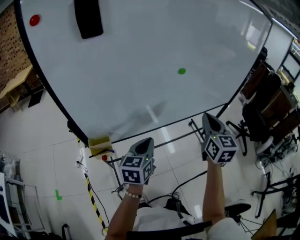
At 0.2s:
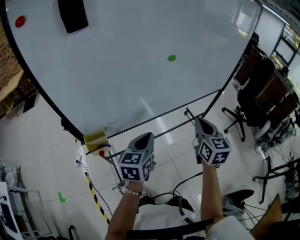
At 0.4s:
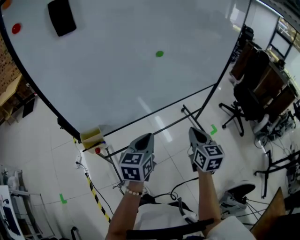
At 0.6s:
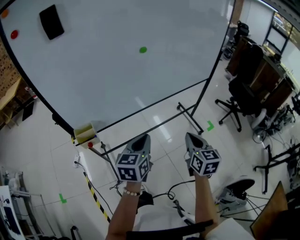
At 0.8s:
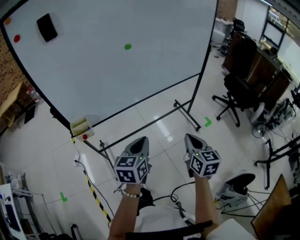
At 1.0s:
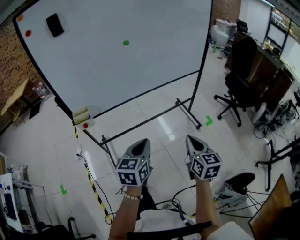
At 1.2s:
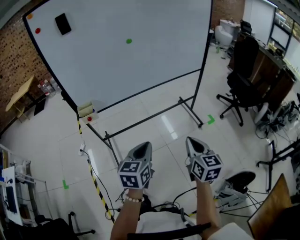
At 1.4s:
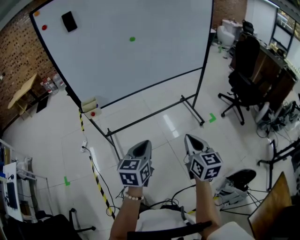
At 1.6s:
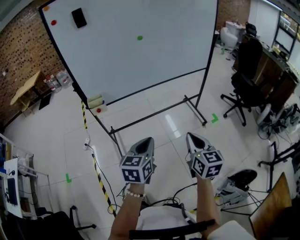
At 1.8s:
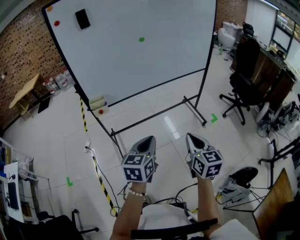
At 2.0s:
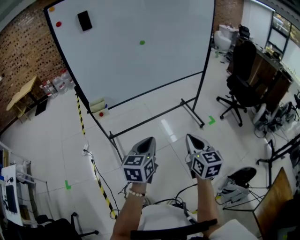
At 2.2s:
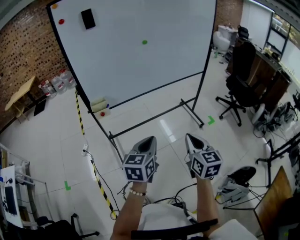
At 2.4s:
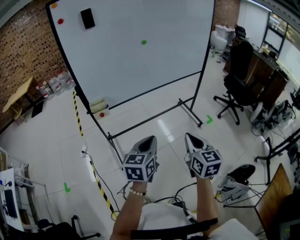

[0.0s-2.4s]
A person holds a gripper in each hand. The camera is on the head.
0.0s to 1.2s: The pair of grippers is taken backward and to the right, approximately 40 cm.
1.2s to 2.4s: The left gripper is displaced to the left by approximately 10 cm; the right gripper travels to the left and backward by some 15 cm.

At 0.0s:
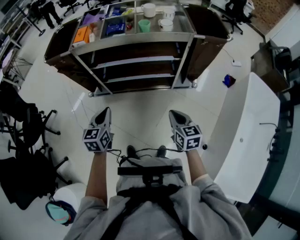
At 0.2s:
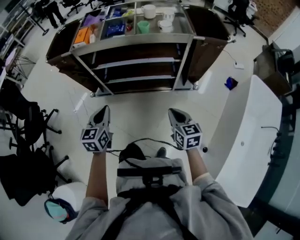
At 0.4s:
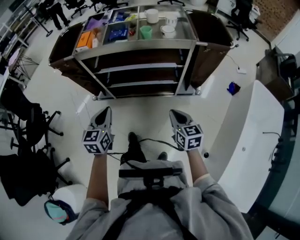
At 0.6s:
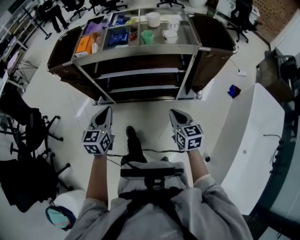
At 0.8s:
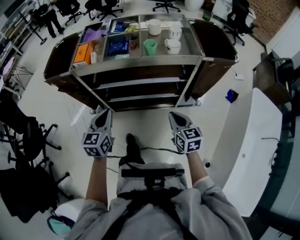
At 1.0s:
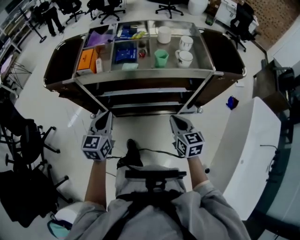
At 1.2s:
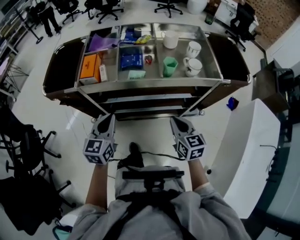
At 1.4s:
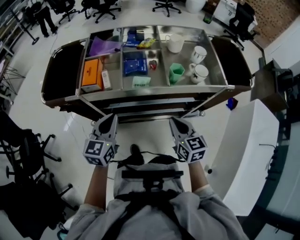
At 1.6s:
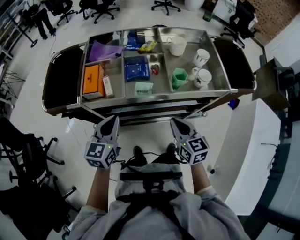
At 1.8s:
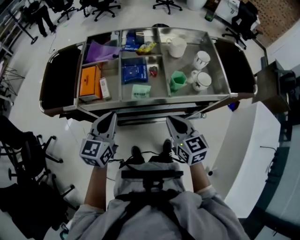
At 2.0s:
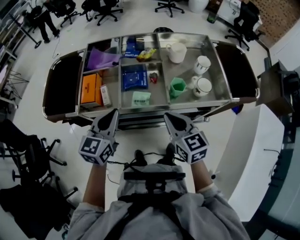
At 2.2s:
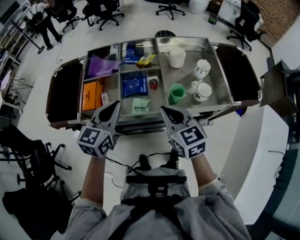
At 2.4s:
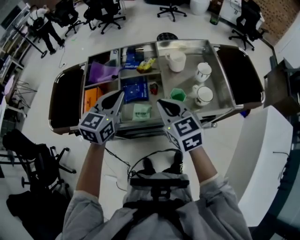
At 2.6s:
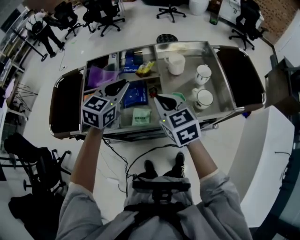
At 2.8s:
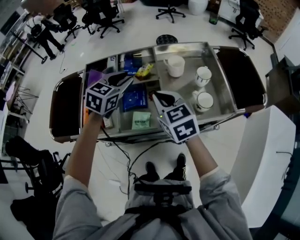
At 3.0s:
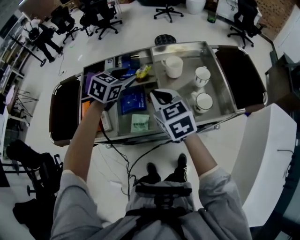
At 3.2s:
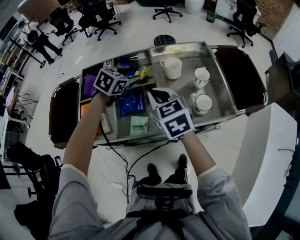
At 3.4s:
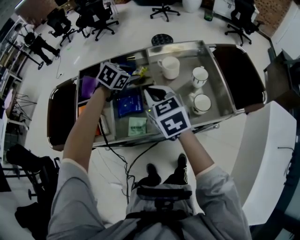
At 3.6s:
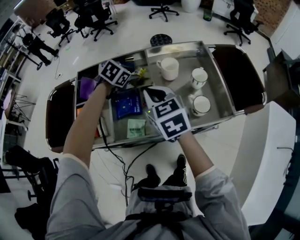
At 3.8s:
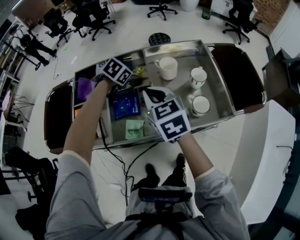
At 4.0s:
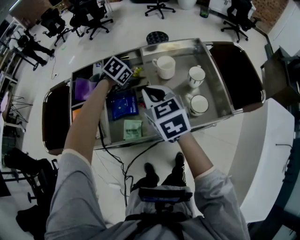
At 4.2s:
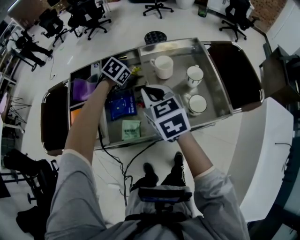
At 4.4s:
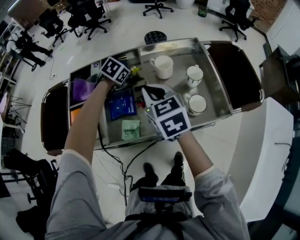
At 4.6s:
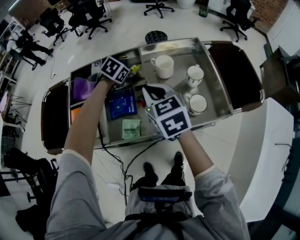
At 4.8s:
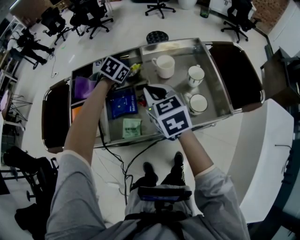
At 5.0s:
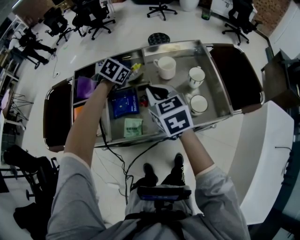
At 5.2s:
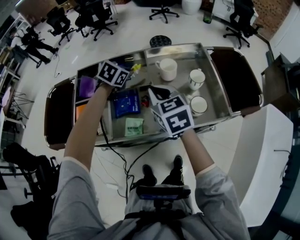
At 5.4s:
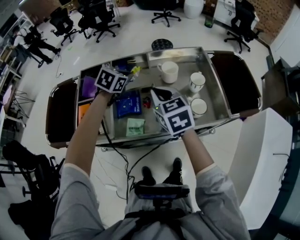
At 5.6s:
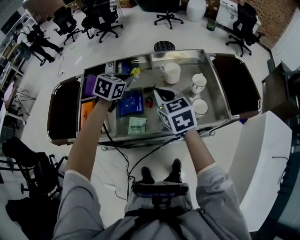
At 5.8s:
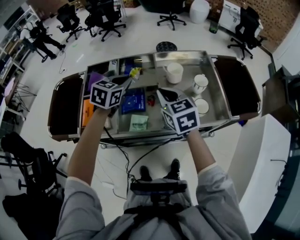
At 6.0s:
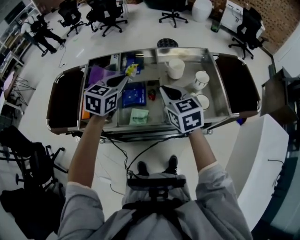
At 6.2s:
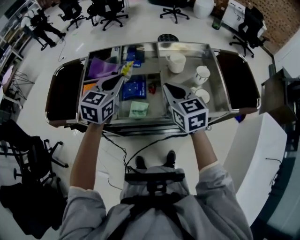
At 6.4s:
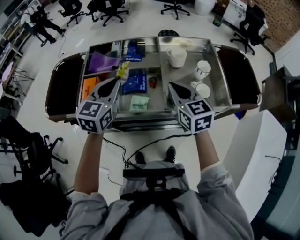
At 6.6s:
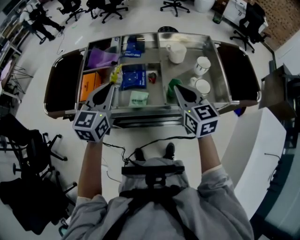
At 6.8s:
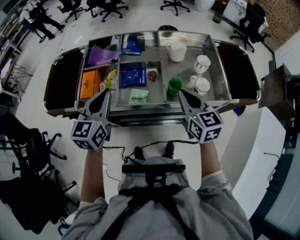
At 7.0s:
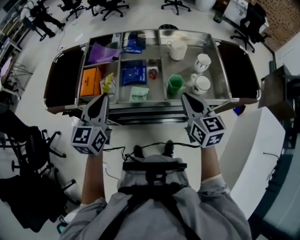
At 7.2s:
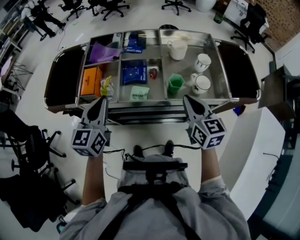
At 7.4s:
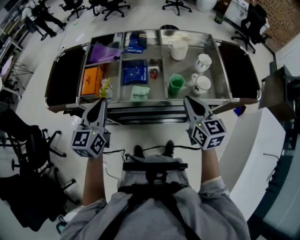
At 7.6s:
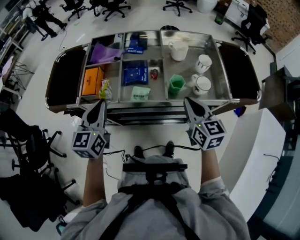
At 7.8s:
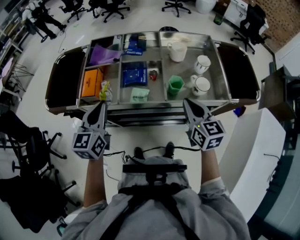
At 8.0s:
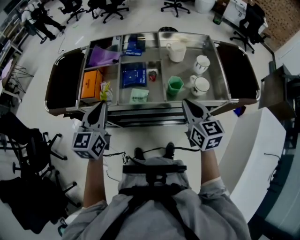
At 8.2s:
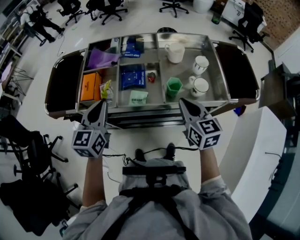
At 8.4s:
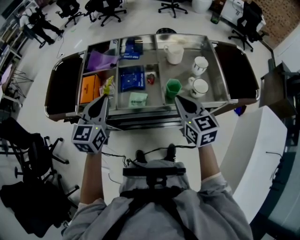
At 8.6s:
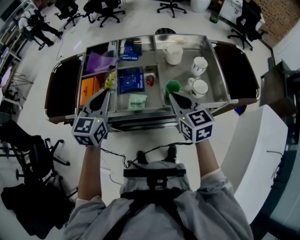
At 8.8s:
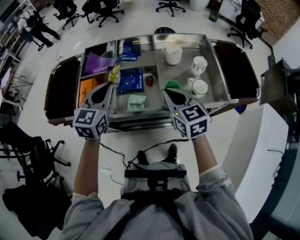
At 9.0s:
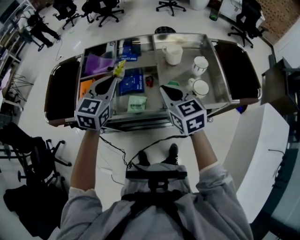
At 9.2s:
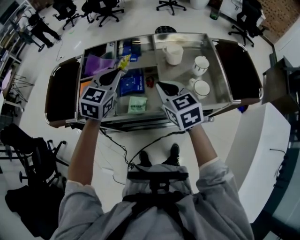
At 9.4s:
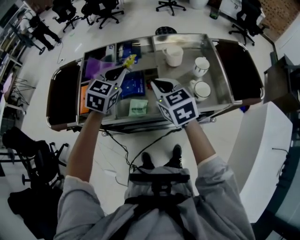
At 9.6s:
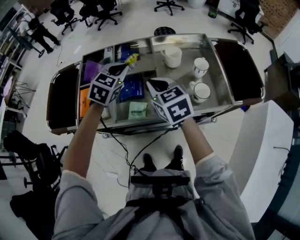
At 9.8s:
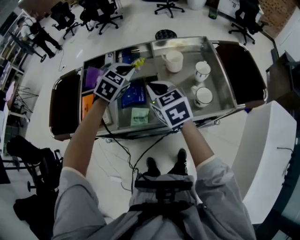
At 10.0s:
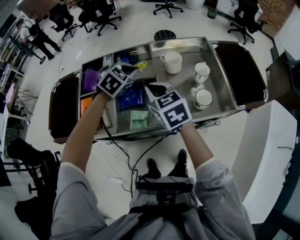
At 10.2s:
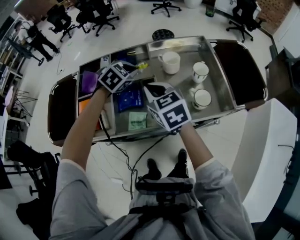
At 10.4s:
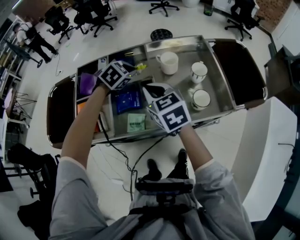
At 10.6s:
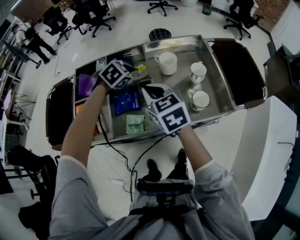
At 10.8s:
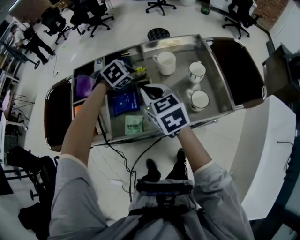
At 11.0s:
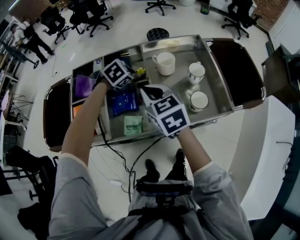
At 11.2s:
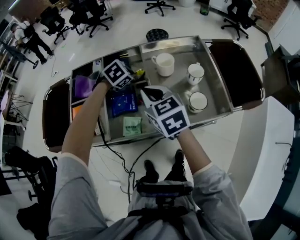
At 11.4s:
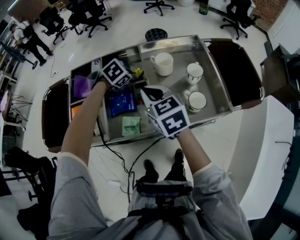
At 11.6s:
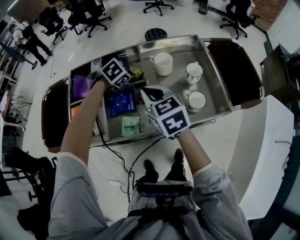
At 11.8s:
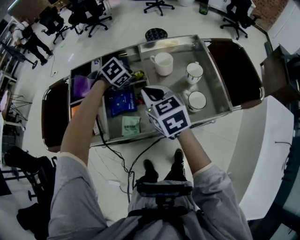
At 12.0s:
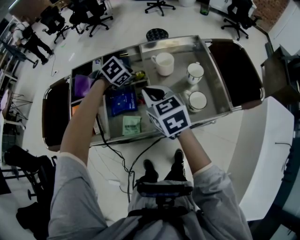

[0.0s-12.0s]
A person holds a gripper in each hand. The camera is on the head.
0.0s to 1.6s: The left gripper moves forward, approximately 30 cm. Meanwhile the right gripper travels forward and to the left by about 35 cm.
1.6s to 3.0s: The right gripper goes about 25 cm forward and upward; the left gripper heads forward, covering roughly 30 cm, swivels some 30 degrees, and opens up.
3.0s to 4.4s: The left gripper is displaced downward and forward by about 15 cm, turns by roughly 20 degrees, and closes its fingers.
4.4s to 6.0s: The left gripper is displaced backward and upward by some 20 cm, and points its fingers about 40 degrees further upward.
6.0s to 7.6s: The left gripper is displaced backward and to the left by roughly 20 cm, and swivels some 30 degrees. The right gripper is displaced backward and to the right by about 15 cm.
7.6s to 9.0s: The right gripper shifts about 10 cm forward and to the left. Meanwhile the left gripper moves forward and to the right, about 15 cm, and swivels some 20 degrees.
9.0s to 10.4s: The right gripper heads forward, covering approximately 10 cm; the left gripper goes some 20 cm forward, downward and to the right, and points its fingers roughly 30 degrees further downward.
10.4s to 12.0s: The left gripper opens its fingers.

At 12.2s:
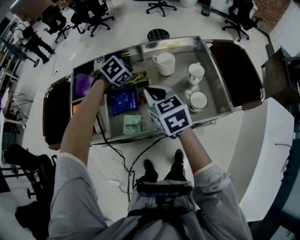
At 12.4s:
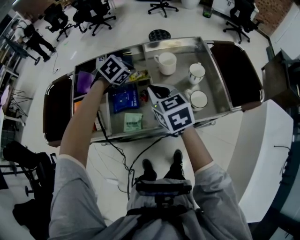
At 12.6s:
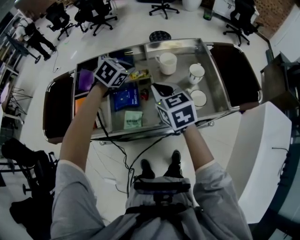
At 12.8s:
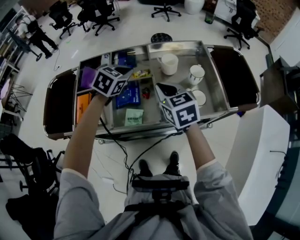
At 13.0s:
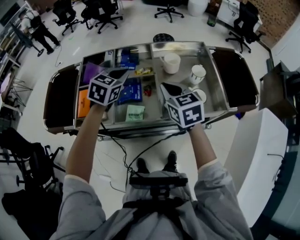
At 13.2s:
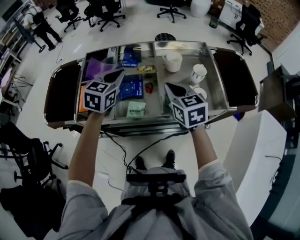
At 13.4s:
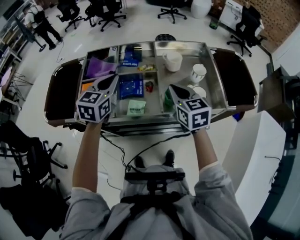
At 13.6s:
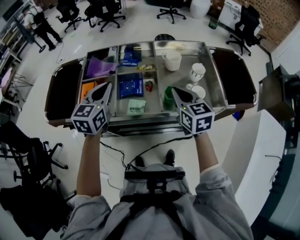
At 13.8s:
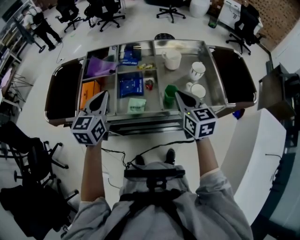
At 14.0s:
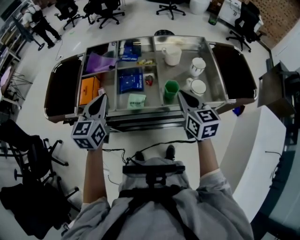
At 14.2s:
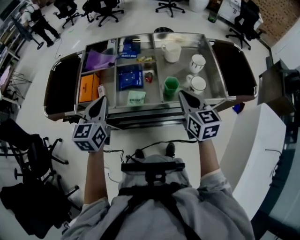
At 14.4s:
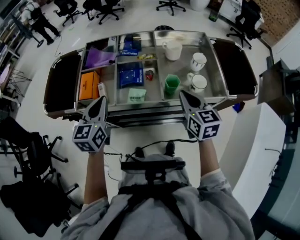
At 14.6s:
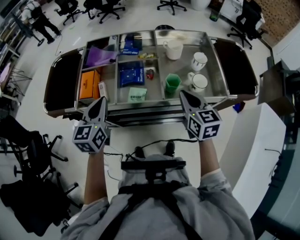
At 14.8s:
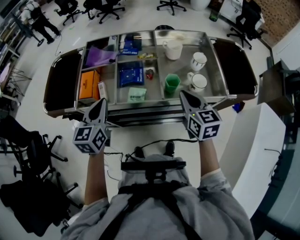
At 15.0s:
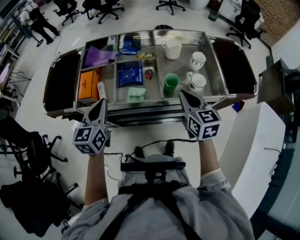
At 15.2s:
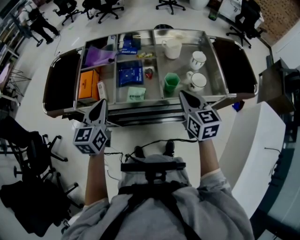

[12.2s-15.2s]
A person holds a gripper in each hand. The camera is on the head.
12.2s to 13.8s: The left gripper shifts roughly 30 cm backward, to the left and upward, angles its fingers upward, by approximately 50 degrees, and closes. Meanwhile the right gripper heads backward and to the right, covering some 10 cm.
13.8s to 15.2s: The left gripper shifts about 5 cm backward.

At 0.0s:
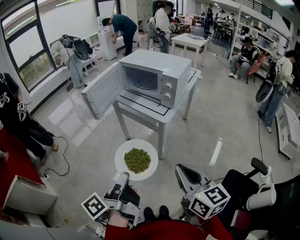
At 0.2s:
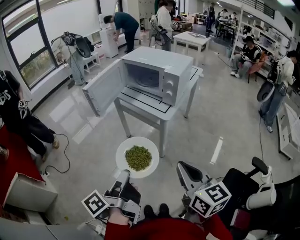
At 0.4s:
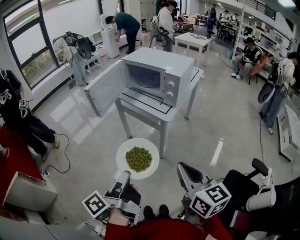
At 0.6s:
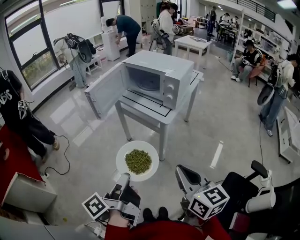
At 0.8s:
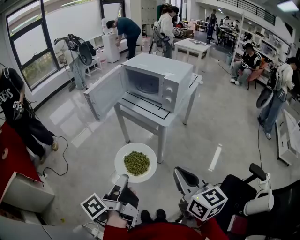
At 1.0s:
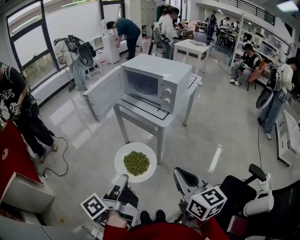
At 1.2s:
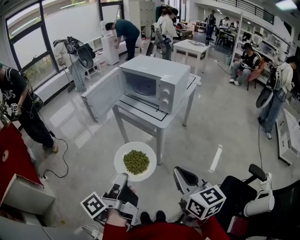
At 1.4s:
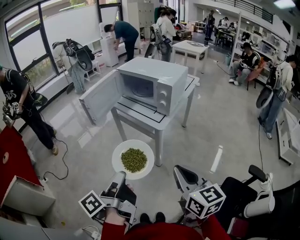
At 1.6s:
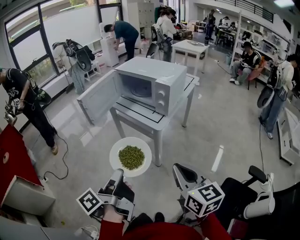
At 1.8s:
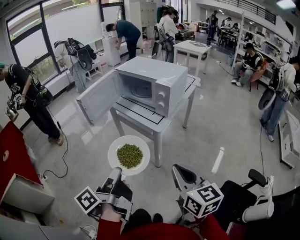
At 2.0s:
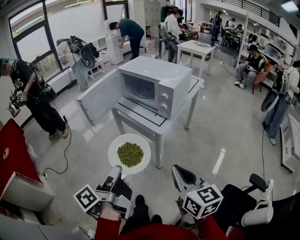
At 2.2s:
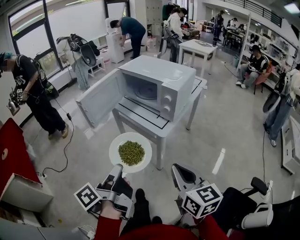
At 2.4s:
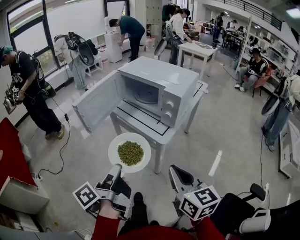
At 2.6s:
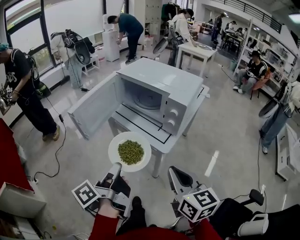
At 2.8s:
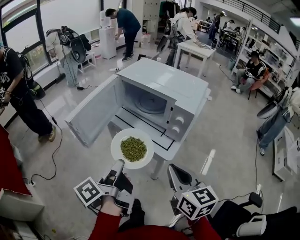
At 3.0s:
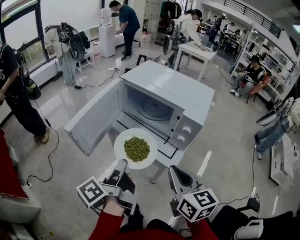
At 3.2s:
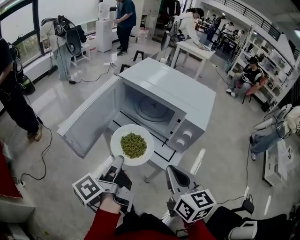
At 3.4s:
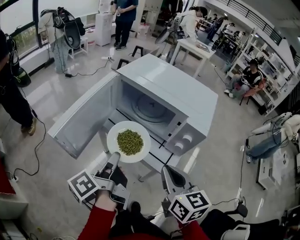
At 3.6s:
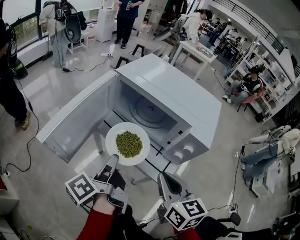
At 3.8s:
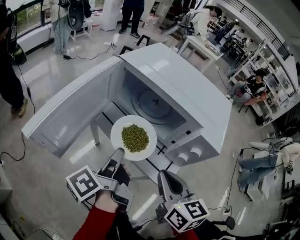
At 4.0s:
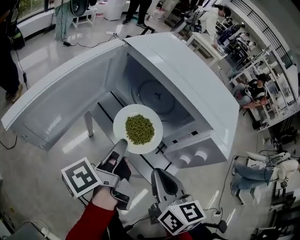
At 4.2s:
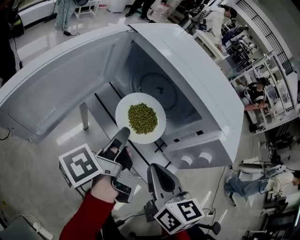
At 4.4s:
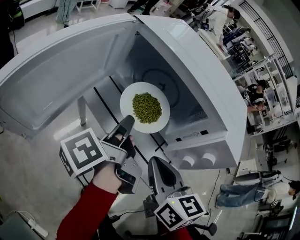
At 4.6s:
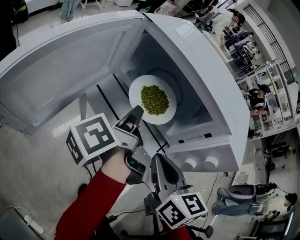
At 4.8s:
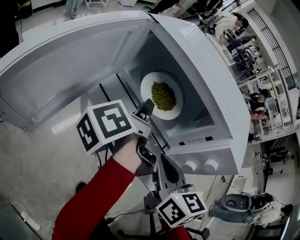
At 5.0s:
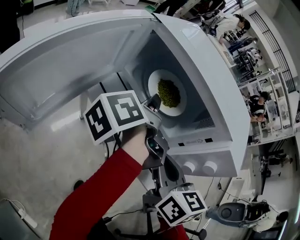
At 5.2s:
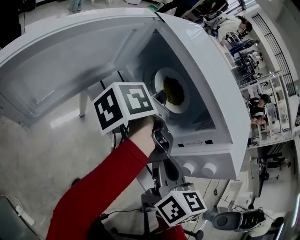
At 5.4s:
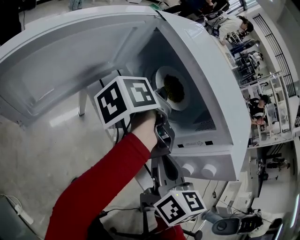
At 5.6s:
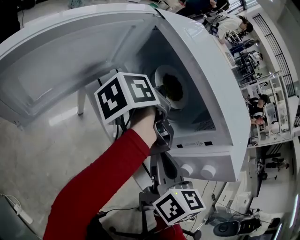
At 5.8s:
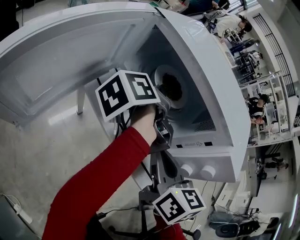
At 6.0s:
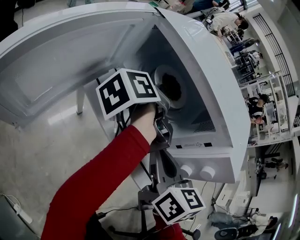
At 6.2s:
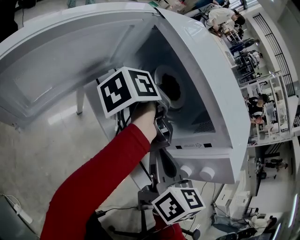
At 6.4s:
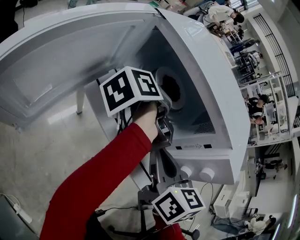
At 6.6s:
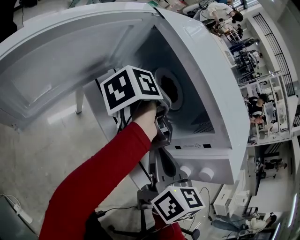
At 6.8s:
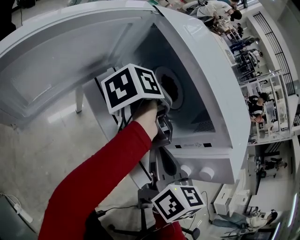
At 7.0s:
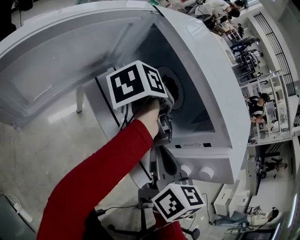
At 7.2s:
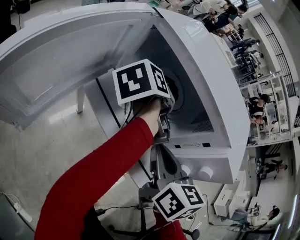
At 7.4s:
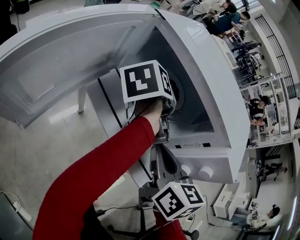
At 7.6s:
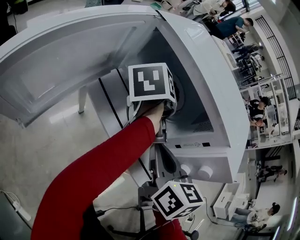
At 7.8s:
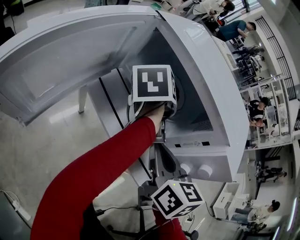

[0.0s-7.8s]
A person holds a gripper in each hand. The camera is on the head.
0.0s to 1.6s: The right gripper ends up approximately 5 cm from where it was.
1.6s to 3.2s: The grippers both shift forward by about 30 cm.
3.2s to 4.6s: The left gripper heads forward and downward, covering about 20 cm. The right gripper heads forward, to the left and downward, covering roughly 20 cm.
4.6s to 6.2s: The left gripper is displaced forward by approximately 10 cm.
6.2s to 7.8s: The left gripper changes its angle by about 30 degrees.
